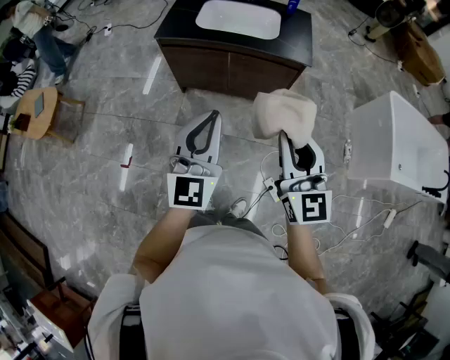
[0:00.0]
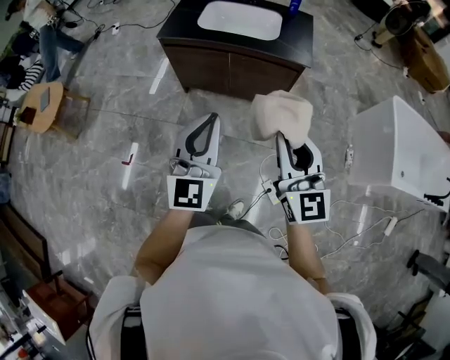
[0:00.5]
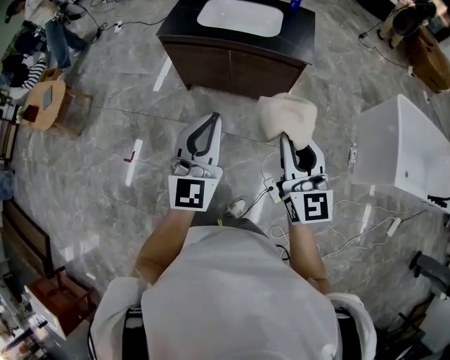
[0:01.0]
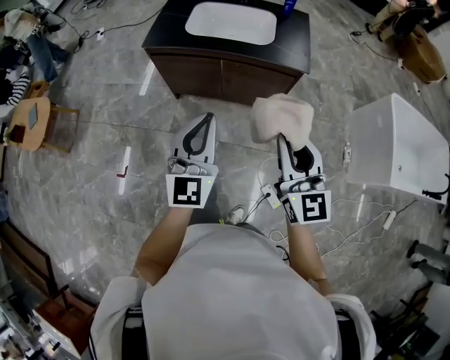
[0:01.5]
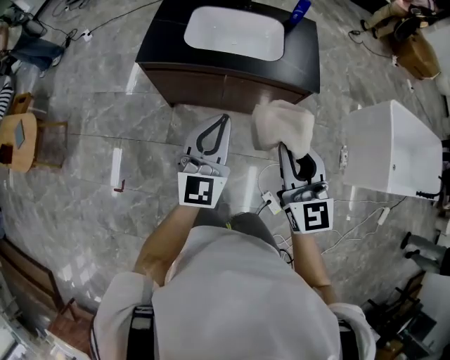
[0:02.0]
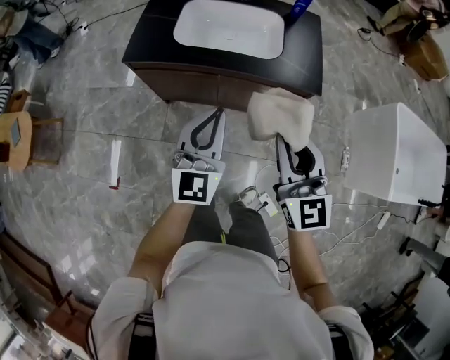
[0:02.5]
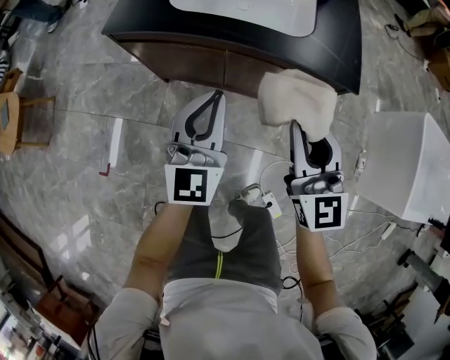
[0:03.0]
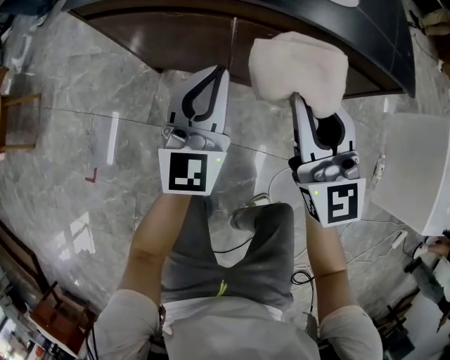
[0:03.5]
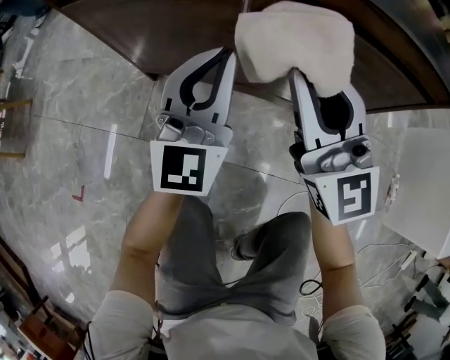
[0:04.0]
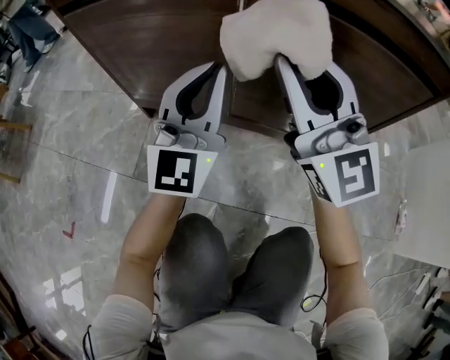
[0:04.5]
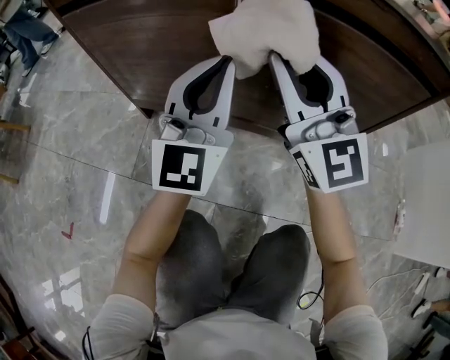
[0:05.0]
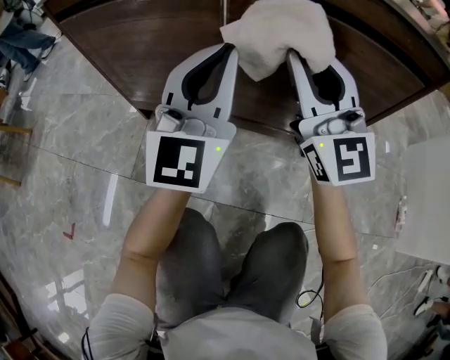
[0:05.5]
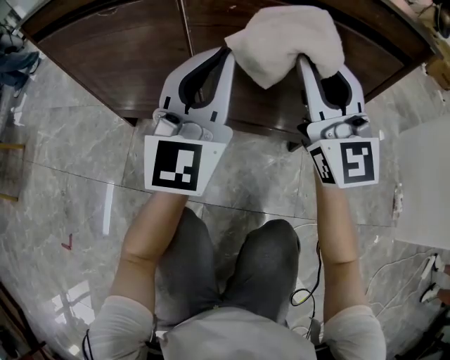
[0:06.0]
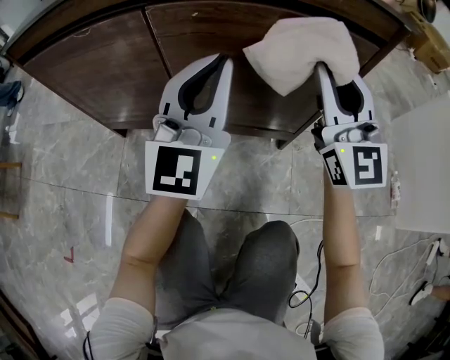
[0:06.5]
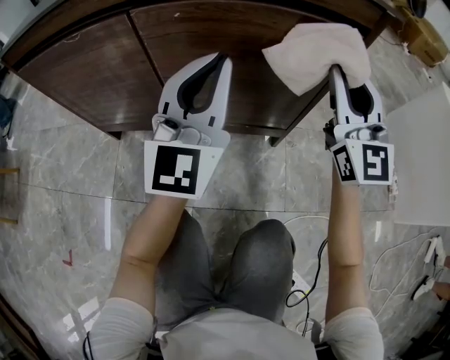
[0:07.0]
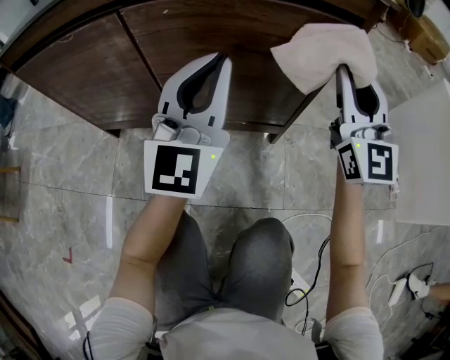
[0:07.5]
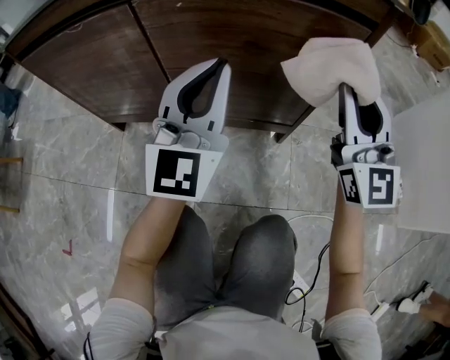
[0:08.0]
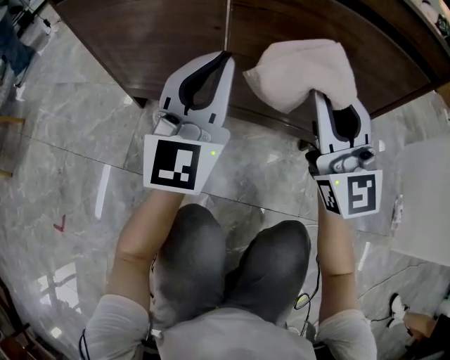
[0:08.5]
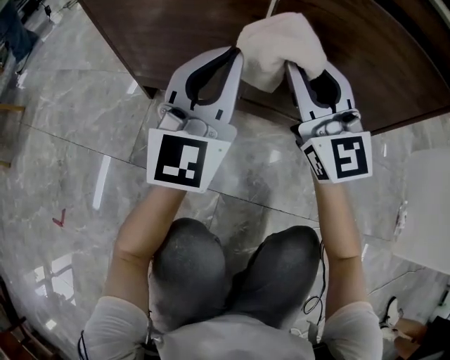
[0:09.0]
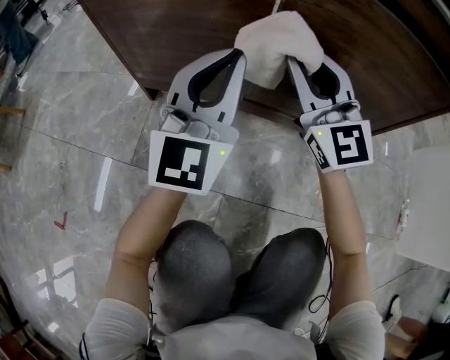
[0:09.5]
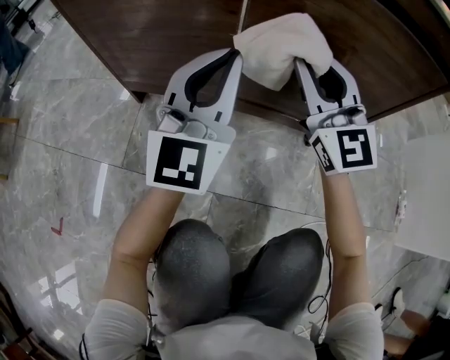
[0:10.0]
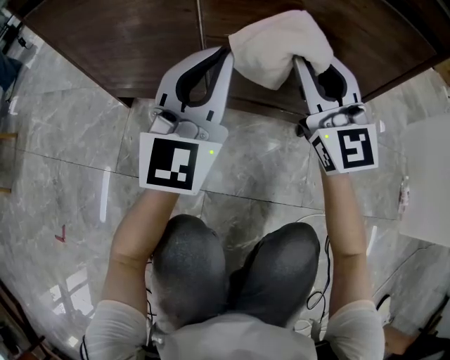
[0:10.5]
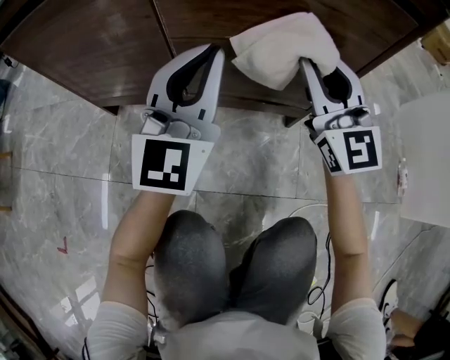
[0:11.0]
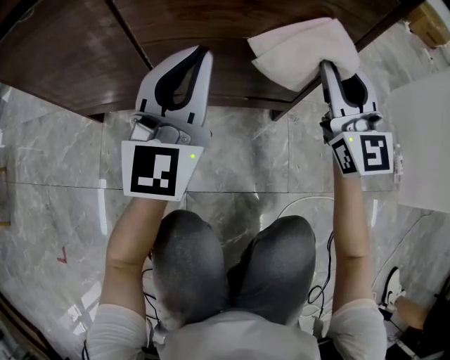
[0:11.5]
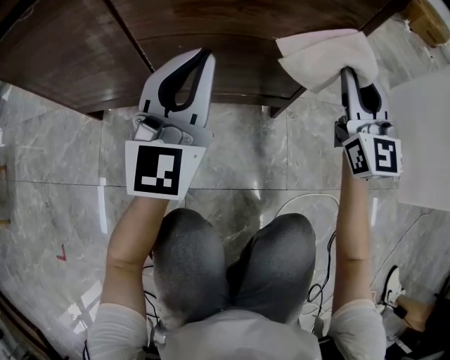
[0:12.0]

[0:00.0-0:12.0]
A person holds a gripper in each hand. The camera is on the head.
0:00.0 to 0:02.0: The grippers both shift forward by approximately 25 cm.
0:02.0 to 0:04.0: The two grippers go approximately 60 cm downward and forward. The right gripper swivels some 20 degrees.
0:04.0 to 0:06.0: The left gripper is displaced to the right by some 10 cm. The right gripper is displaced to the right and downward by roughly 15 cm.
0:06.0 to 0:08.0: The left gripper shifts approximately 5 cm to the right, while the right gripper moves to the right, about 15 cm.
0:08.0 to 0:10.0: The left gripper heads to the left and downward, covering roughly 15 cm, while the right gripper goes about 25 cm to the left.
0:10.0 to 0:12.0: The left gripper heads to the right, covering approximately 15 cm; the right gripper travels to the right by some 30 cm, and changes its angle by roughly 20 degrees.

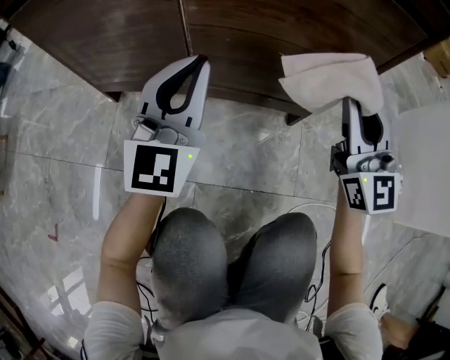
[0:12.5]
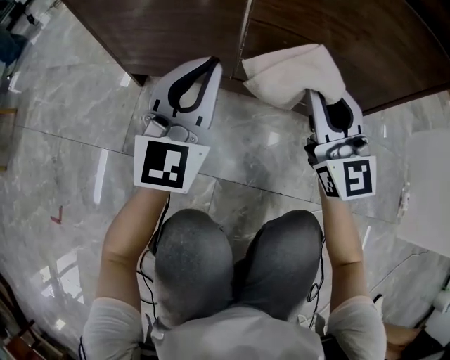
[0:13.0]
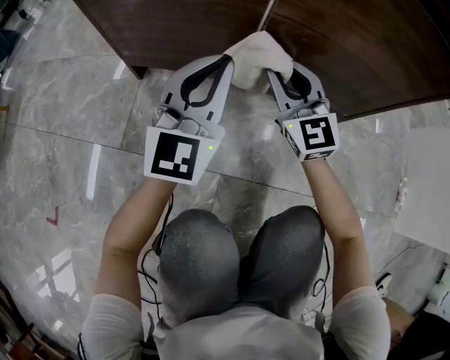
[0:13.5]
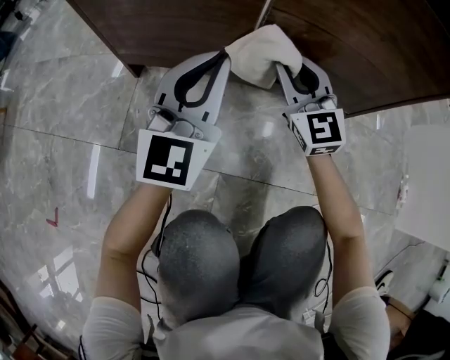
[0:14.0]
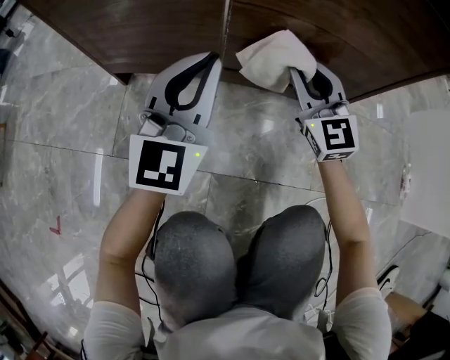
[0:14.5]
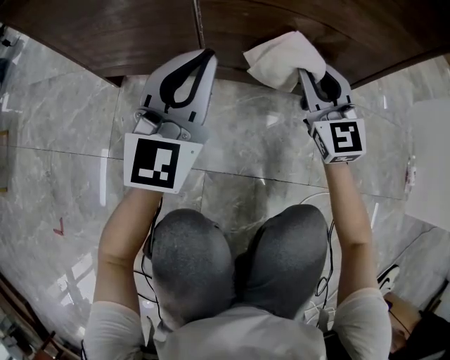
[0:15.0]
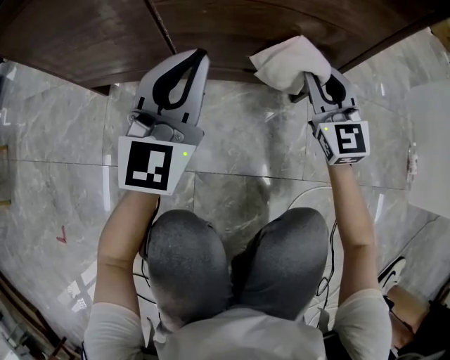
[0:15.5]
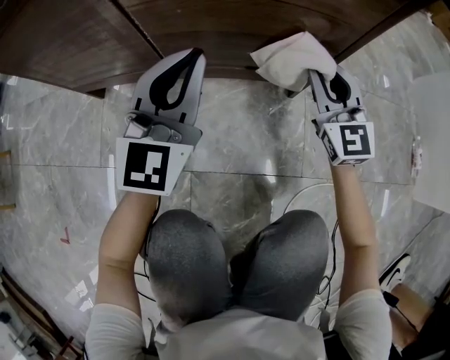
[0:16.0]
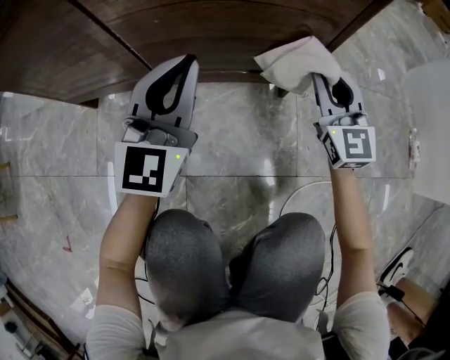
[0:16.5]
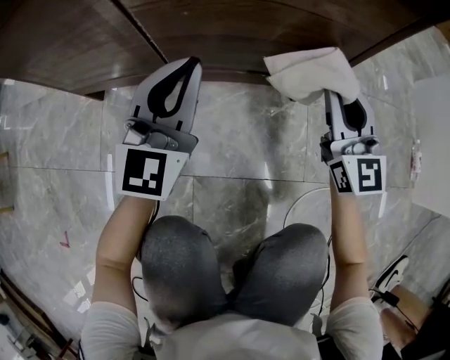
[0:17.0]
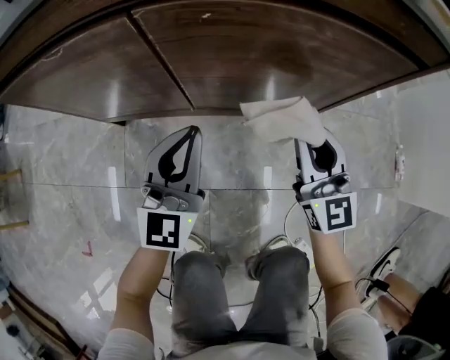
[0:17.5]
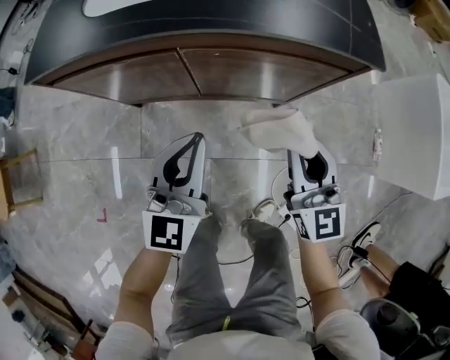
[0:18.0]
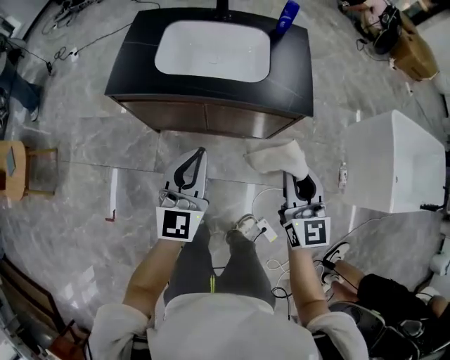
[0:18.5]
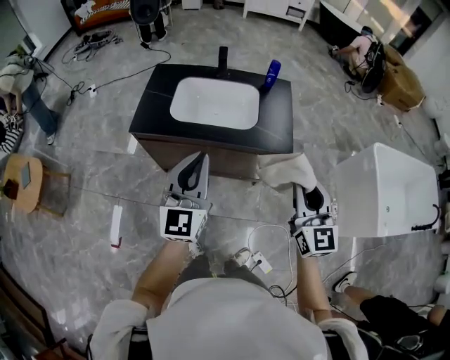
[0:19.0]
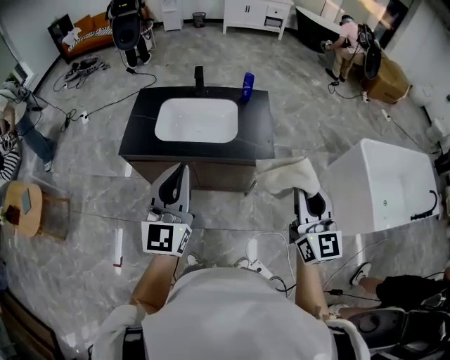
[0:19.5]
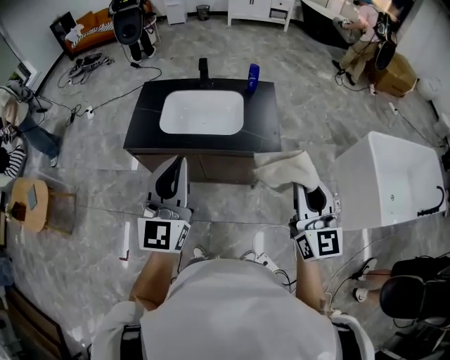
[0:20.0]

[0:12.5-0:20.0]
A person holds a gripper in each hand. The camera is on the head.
0:12.5 to 0:14.5: The left gripper heads to the left and downward, covering approximately 10 cm; the right gripper heads to the left, downward and forward, covering about 20 cm.
0:14.5 to 0:16.5: The right gripper travels to the right by approximately 25 cm. The left gripper travels to the right by approximately 15 cm.
0:16.5 to 0:18.0: The grippers both shift upward by about 35 cm.
0:18.0 to 0:20.0: The two grippers go about 60 cm upward.

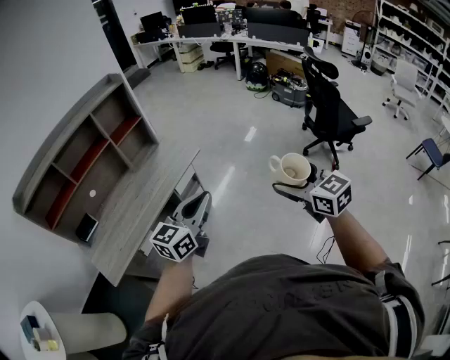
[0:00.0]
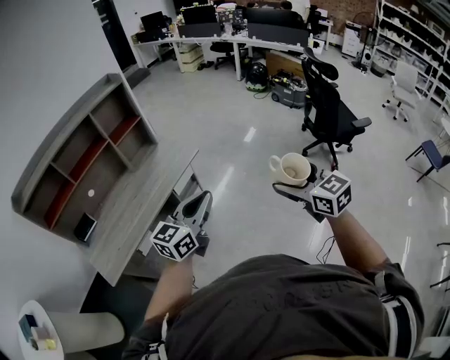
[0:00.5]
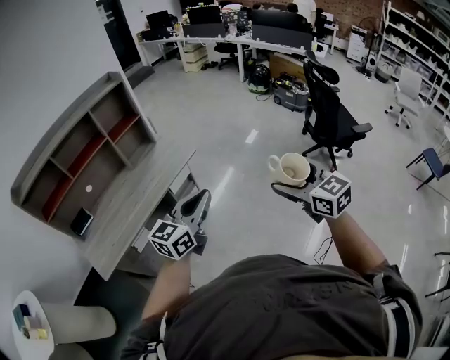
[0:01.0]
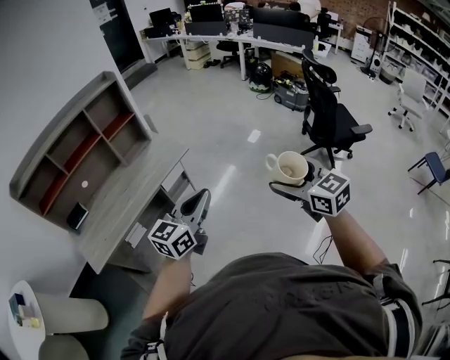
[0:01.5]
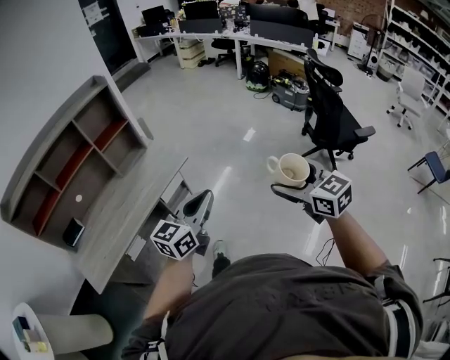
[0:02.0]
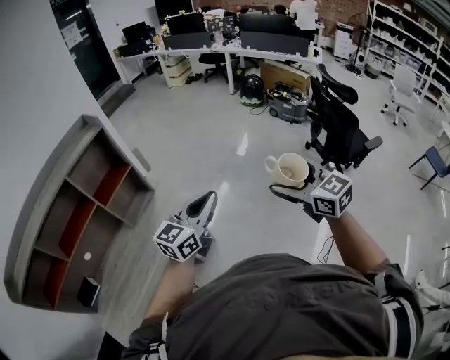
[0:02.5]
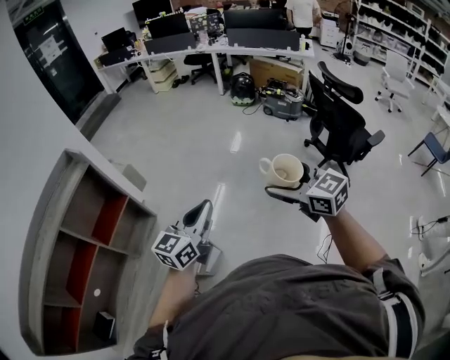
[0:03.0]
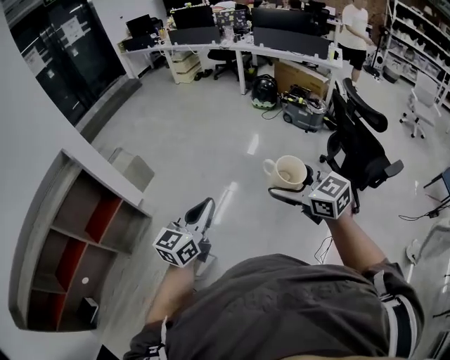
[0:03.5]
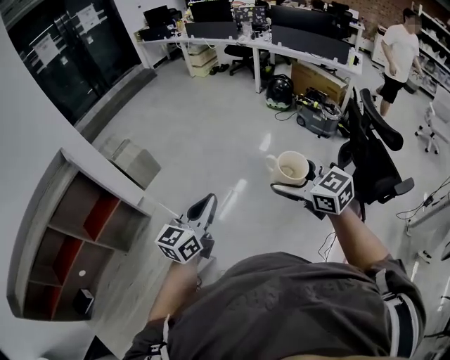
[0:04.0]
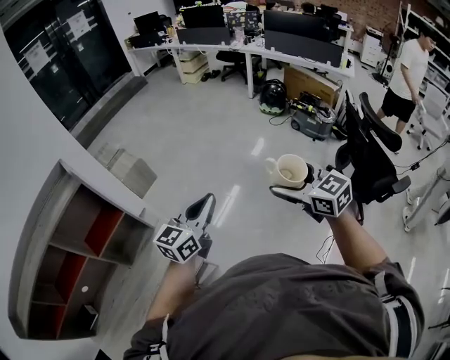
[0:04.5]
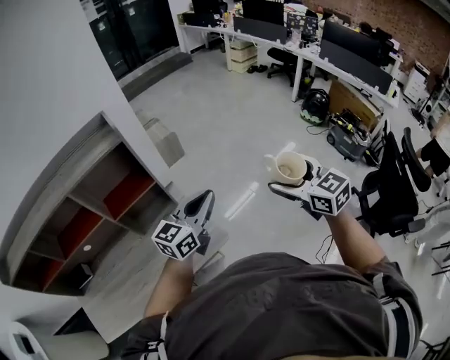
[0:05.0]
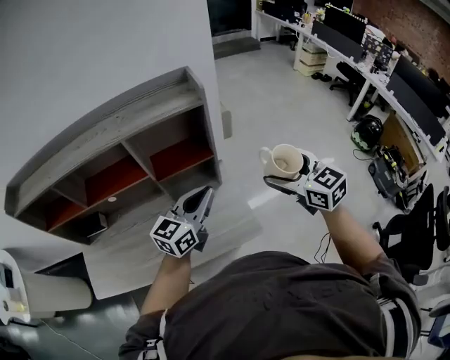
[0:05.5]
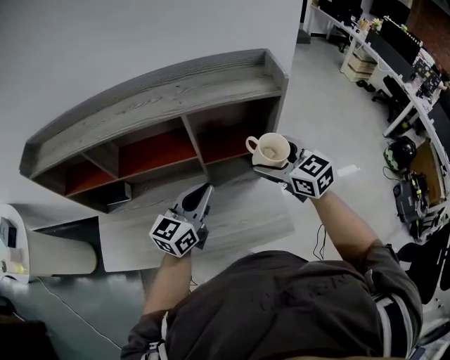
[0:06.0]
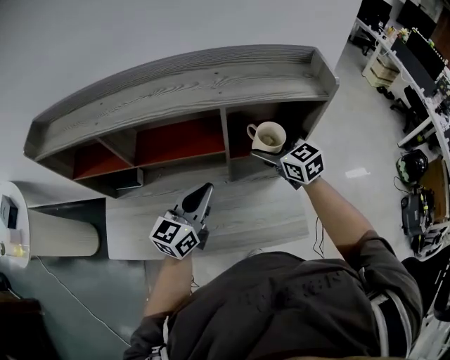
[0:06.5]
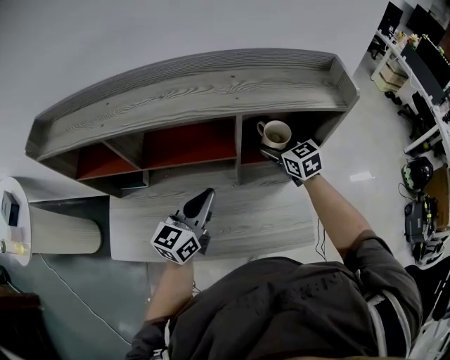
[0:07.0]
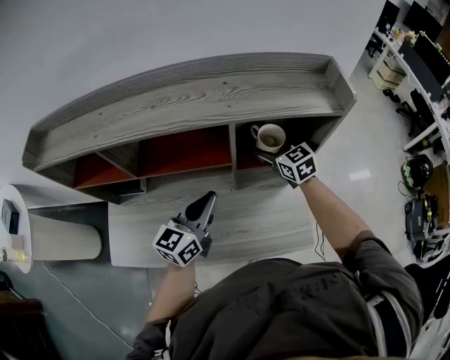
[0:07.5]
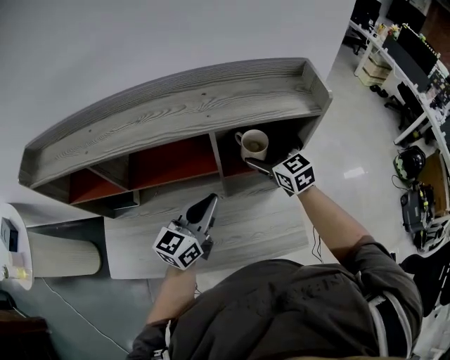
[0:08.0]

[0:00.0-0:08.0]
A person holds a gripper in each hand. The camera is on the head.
0:00.0 to 0:02.0: The grippers both shift forward and to the right by approximately 10 cm.
0:02.0 to 0:04.0: Both grippers are carried forward, about 50 cm.
0:04.0 to 0:06.0: Both grippers are carried some 60 cm. The left gripper changes its angle by approximately 40 degrees, while the right gripper rotates approximately 50 degrees.
0:06.0 to 0:08.0: The right gripper travels forward, downward and to the left by about 15 cm.
